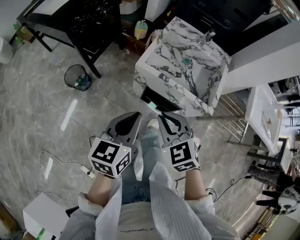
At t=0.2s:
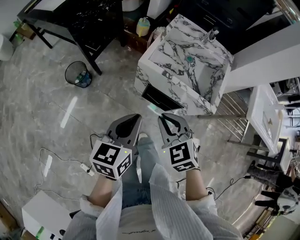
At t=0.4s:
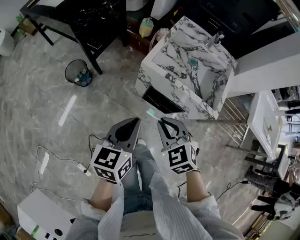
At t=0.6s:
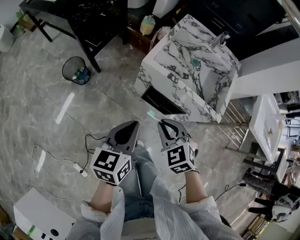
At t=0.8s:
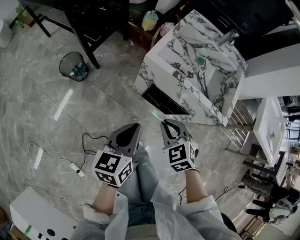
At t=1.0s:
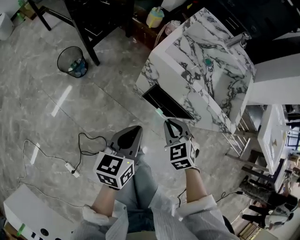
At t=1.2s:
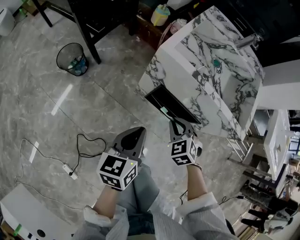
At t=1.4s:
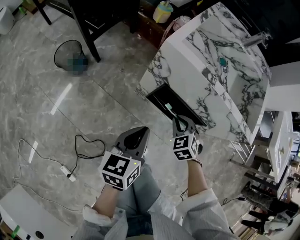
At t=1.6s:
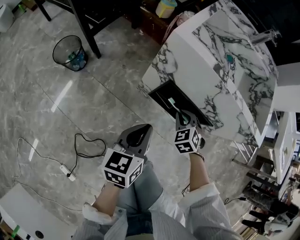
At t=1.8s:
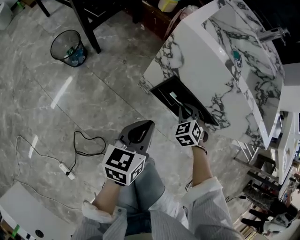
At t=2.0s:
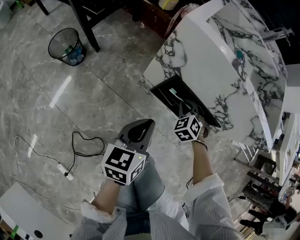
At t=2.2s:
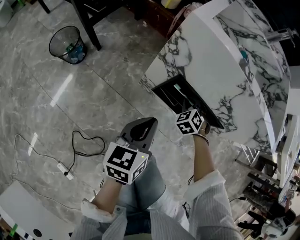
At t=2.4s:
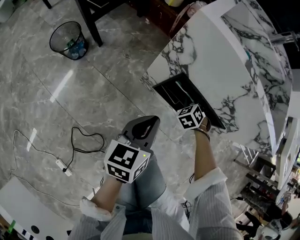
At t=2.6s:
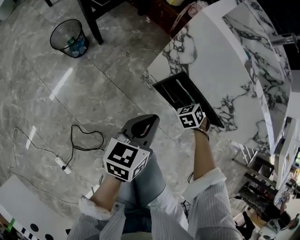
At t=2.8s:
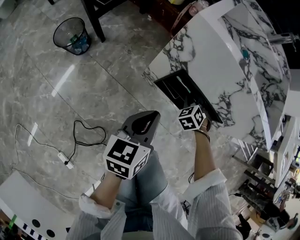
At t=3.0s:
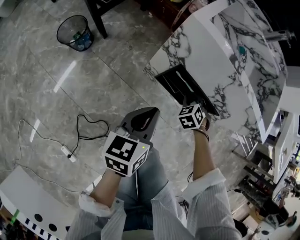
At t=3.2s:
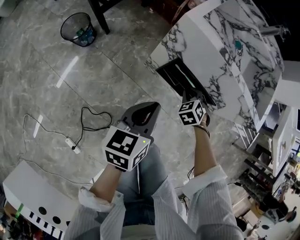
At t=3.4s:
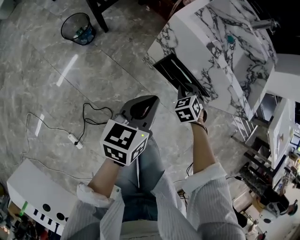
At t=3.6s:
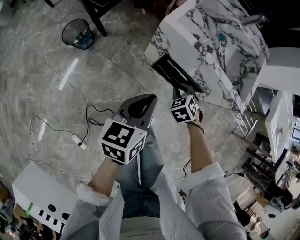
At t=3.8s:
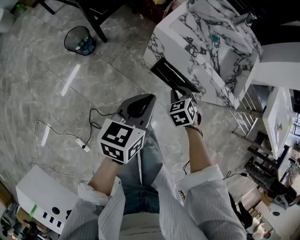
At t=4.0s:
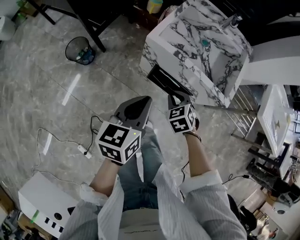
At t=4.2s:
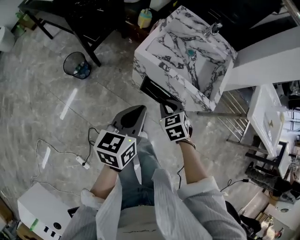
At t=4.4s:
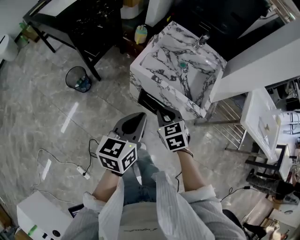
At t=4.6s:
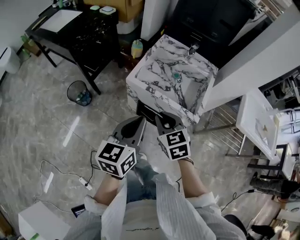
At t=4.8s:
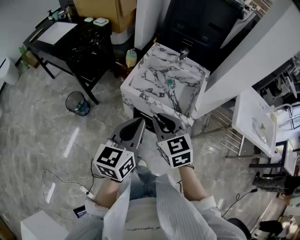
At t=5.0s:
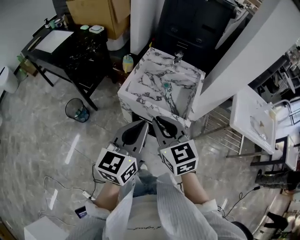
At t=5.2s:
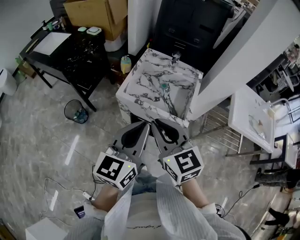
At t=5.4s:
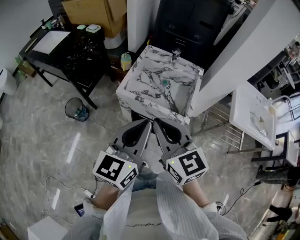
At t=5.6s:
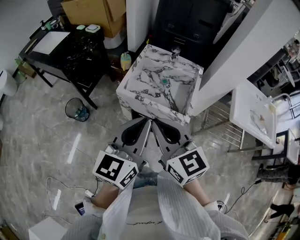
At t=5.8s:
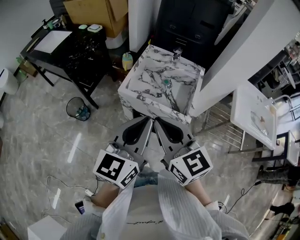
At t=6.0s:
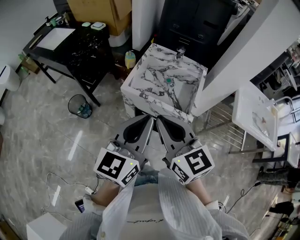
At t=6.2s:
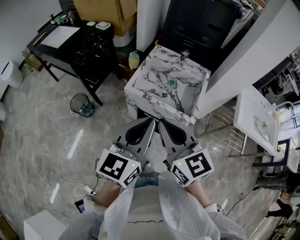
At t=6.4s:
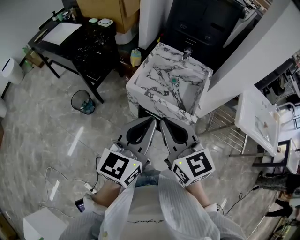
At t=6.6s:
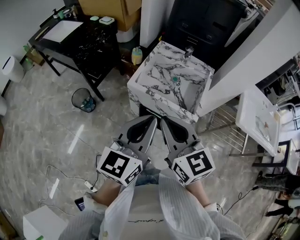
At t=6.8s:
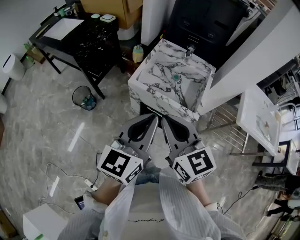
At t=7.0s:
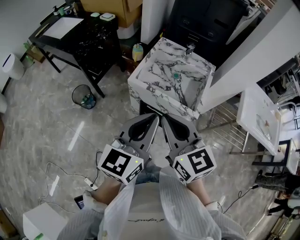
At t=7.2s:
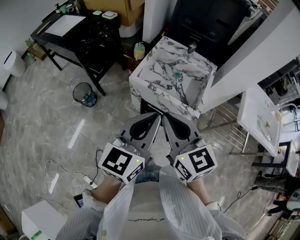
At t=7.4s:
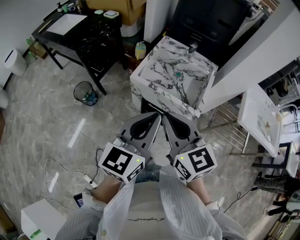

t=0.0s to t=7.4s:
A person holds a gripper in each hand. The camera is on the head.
t=0.0s to t=1.4s: Both grippers travel together downward, roughly 30 cm.
t=1.4s to t=3.0s: The right gripper moves downward, roughly 10 cm; the left gripper travels downward and back again, roughly 10 cm each way.
t=3.0s to t=4.4s: Both grippers move upward, roughly 30 cm. The right gripper turns by approximately 30 degrees.
t=4.4s to t=6.0s: The right gripper travels upward by about 25 cm, and tips its fingers upward by some 40 degrees. Meanwhile the left gripper travels upward by some 15 cm, and changes its angle by roughly 20 degrees.
t=6.0s to t=7.4s: The grippers move only a little.

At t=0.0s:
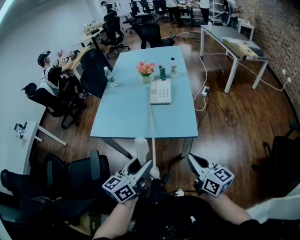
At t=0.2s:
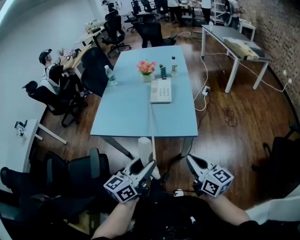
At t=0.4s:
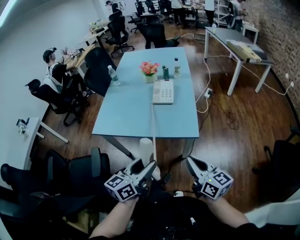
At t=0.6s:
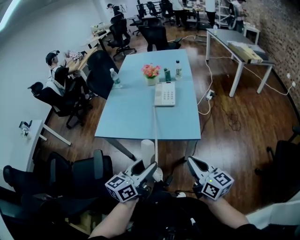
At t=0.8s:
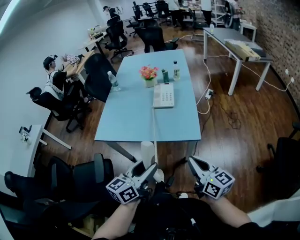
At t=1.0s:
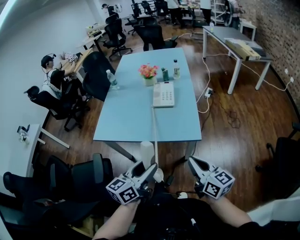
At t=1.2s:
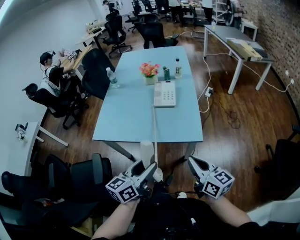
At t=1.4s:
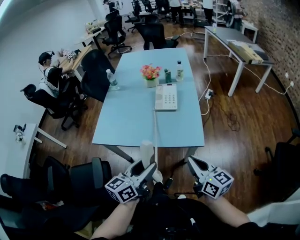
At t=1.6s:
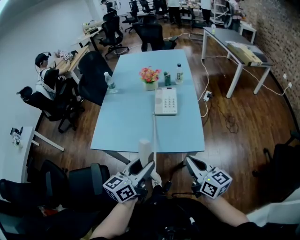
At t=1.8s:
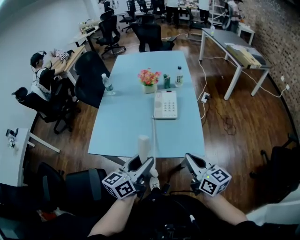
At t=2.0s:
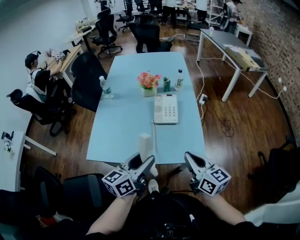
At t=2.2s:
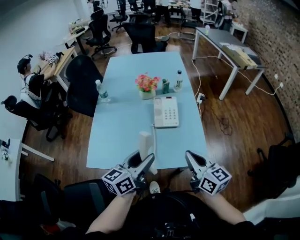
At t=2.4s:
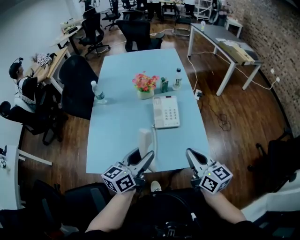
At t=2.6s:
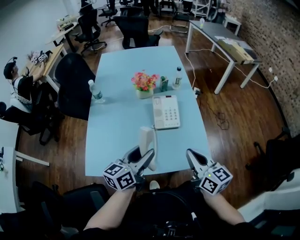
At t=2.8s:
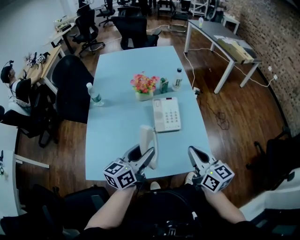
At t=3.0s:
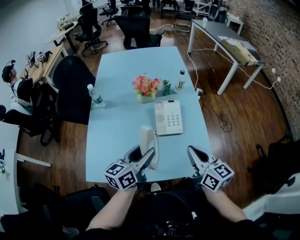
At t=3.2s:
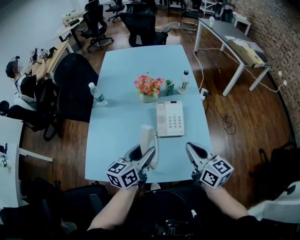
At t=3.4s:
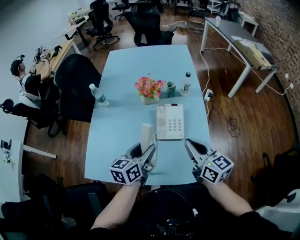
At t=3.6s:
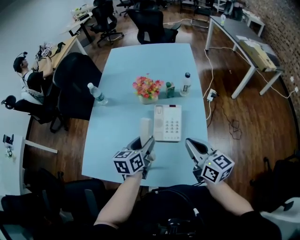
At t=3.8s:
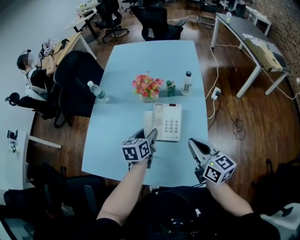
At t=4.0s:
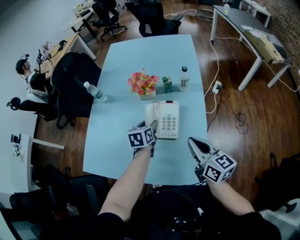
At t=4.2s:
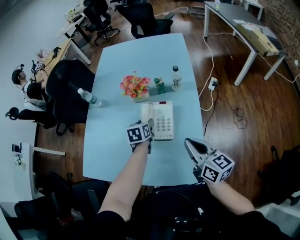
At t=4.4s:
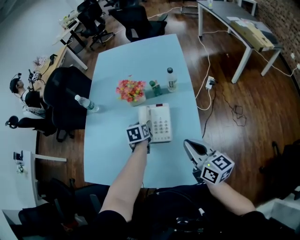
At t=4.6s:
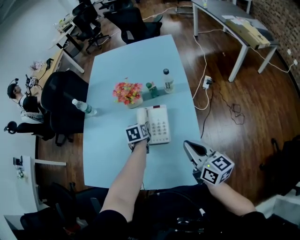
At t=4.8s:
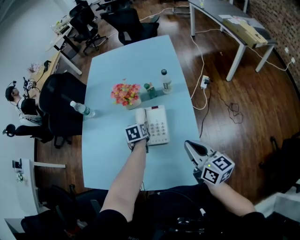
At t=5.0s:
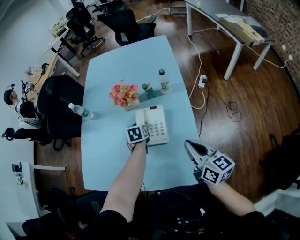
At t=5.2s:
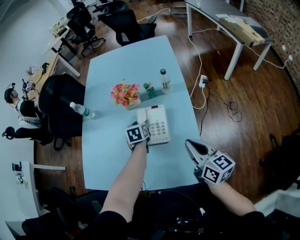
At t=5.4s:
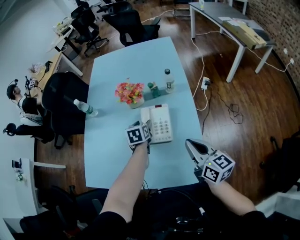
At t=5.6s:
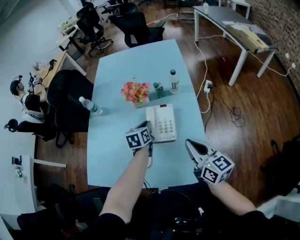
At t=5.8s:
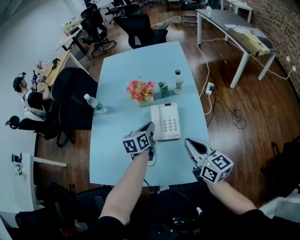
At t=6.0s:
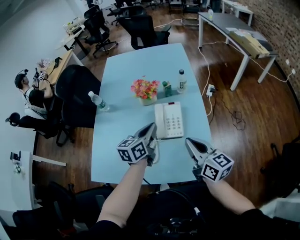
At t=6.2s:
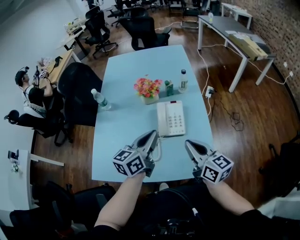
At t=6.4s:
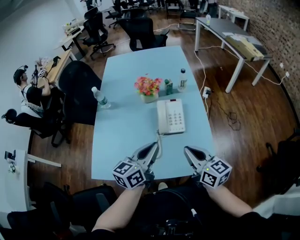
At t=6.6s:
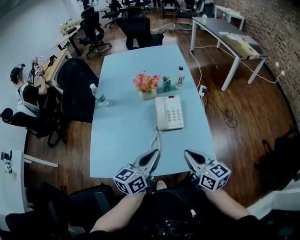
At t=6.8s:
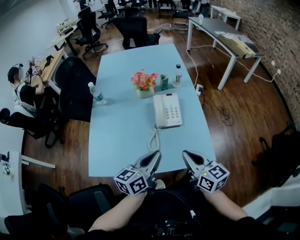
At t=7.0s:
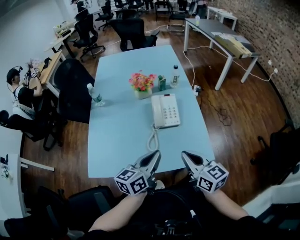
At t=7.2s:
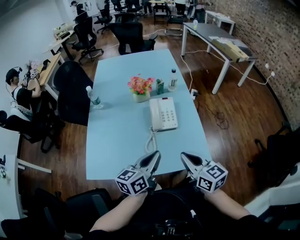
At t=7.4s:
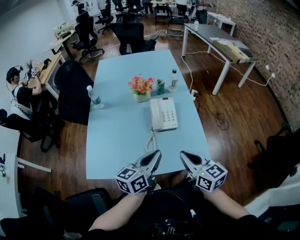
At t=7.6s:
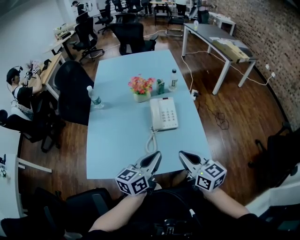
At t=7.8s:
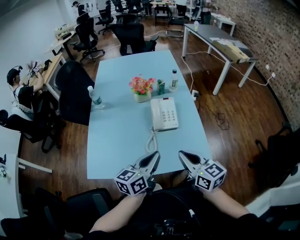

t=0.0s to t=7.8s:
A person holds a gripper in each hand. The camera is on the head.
t=0.0s to t=1.6s: The grippers both shift forward by about 10 cm.
t=1.6s to t=3.2s: The two grippers go approximately 25 cm forward.
t=3.2s to t=4.6s: The right gripper travels to the right by some 10 cm, while the left gripper moves forward, downward and to the right, some 30 cm, and tips its fingers downward by roughly 40 degrees.
t=4.6s to t=6.2s: The right gripper travels to the left by some 10 cm, while the left gripper heads upward and backward, covering about 25 cm, tips its fingers upward by about 40 degrees, and closes up.
t=6.2s to t=7.8s: Both grippers travel together backward, approximately 10 cm.

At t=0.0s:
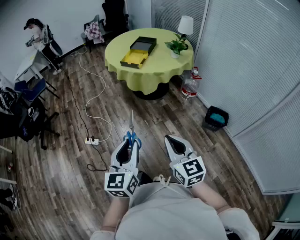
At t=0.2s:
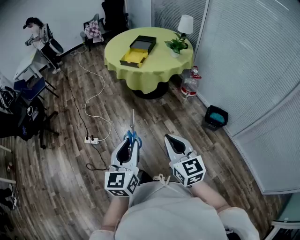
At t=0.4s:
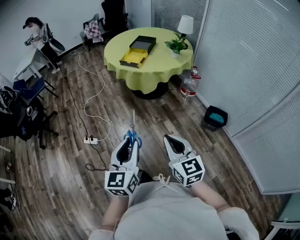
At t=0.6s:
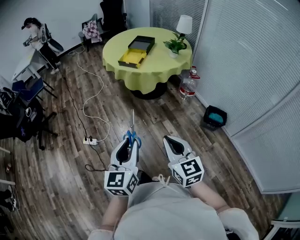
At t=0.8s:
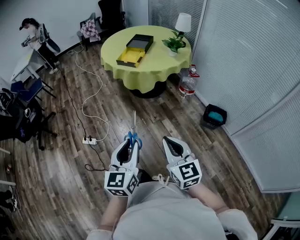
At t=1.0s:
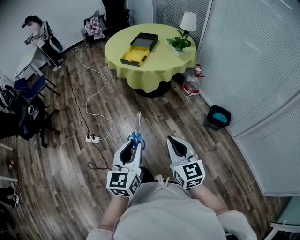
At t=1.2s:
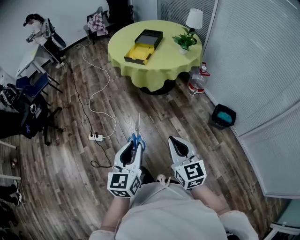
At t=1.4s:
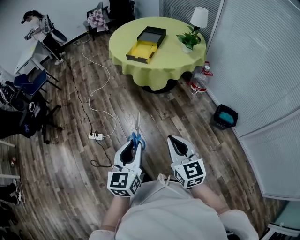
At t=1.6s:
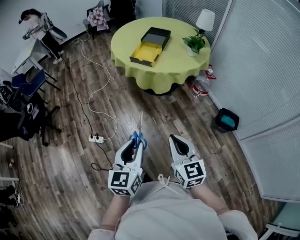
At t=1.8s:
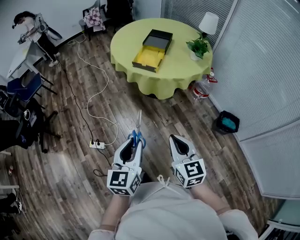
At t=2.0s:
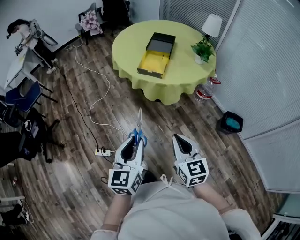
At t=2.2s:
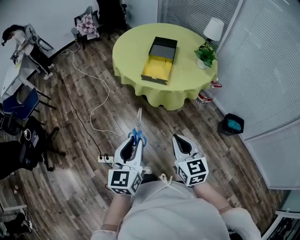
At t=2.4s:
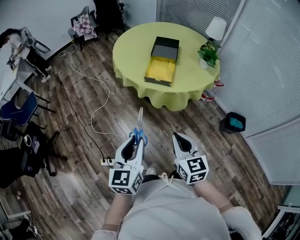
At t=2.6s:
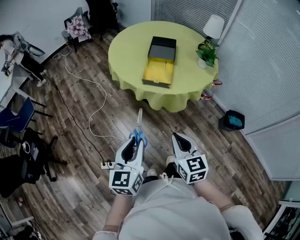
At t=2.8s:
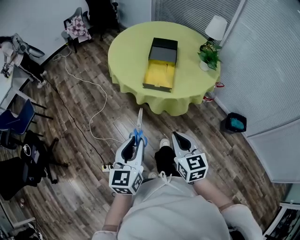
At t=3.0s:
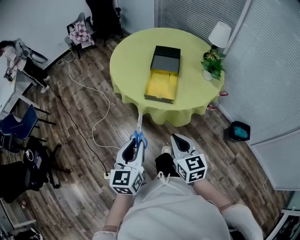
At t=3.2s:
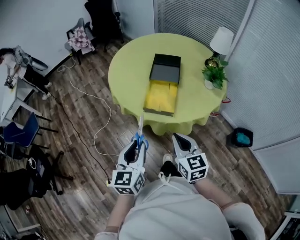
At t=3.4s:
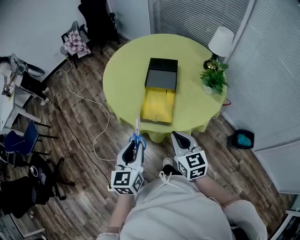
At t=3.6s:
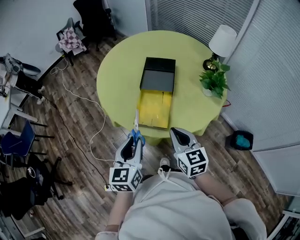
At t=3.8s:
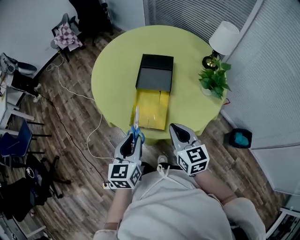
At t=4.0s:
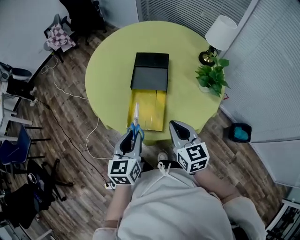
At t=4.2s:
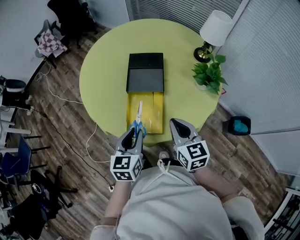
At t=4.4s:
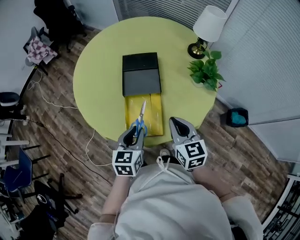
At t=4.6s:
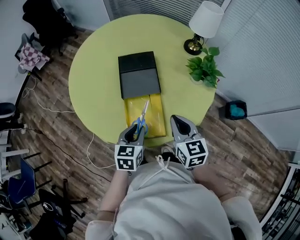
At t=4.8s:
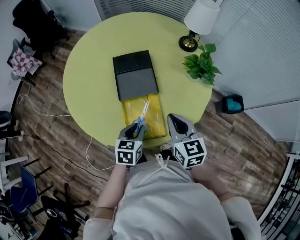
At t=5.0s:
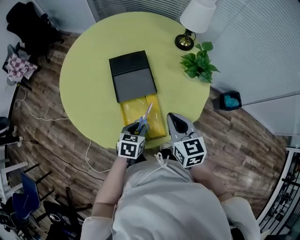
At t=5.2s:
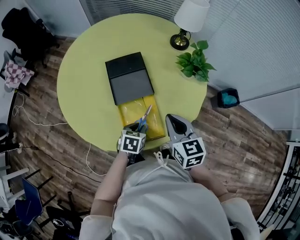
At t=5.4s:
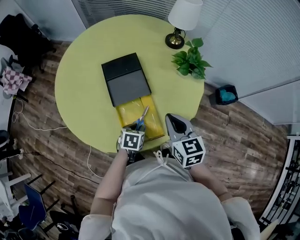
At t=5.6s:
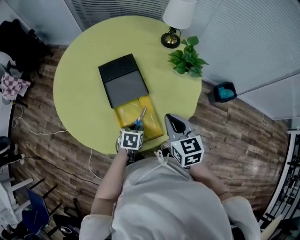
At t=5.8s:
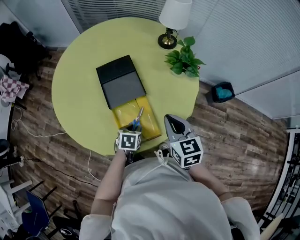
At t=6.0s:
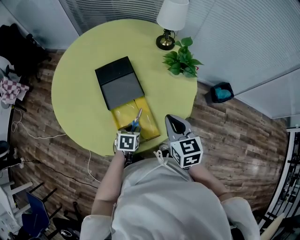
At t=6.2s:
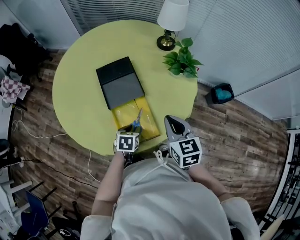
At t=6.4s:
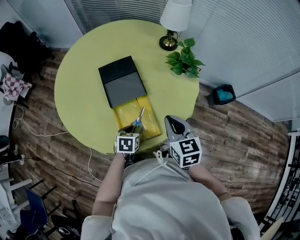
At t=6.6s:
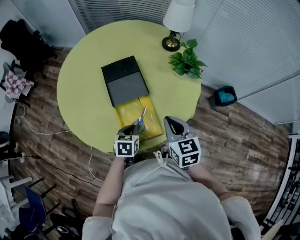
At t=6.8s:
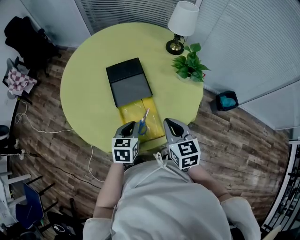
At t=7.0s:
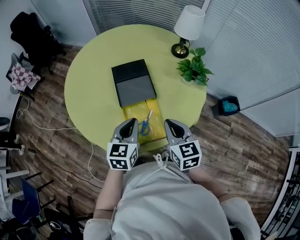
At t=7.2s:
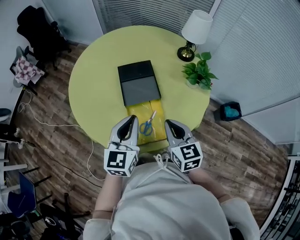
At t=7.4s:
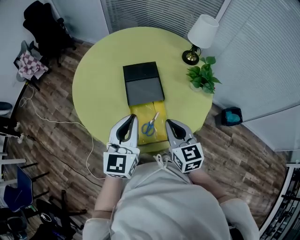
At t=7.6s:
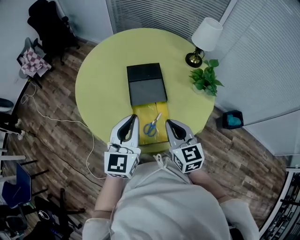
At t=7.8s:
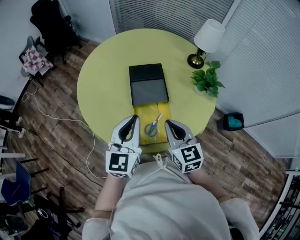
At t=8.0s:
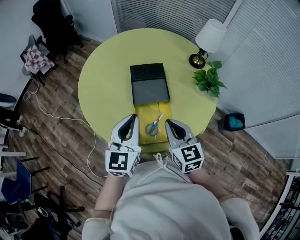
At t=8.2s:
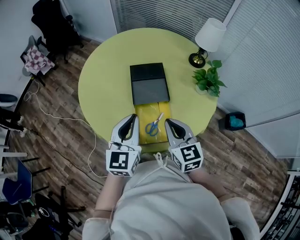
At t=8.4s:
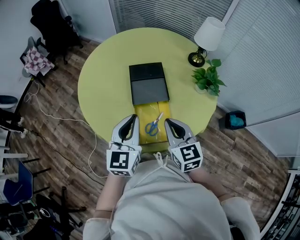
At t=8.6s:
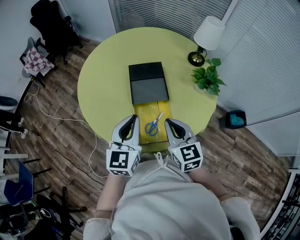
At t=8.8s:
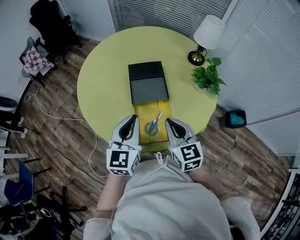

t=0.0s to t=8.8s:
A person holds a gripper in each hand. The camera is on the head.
t=0.0s to t=1.4s: Both grippers travel together forward, roughly 10 cm.
t=1.4s to t=3.0s: The two grippers travel together, forward and to the left, approximately 50 cm.
t=3.0s to t=4.4s: Both grippers travel together forward, some 35 cm. The left gripper swivels roughly 30 degrees.
t=4.4s to t=5.8s: The left gripper is displaced downward by about 15 cm, and rotates roughly 40 degrees.
t=5.8s to t=7.4s: The right gripper goes some 5 cm to the left, while the left gripper goes some 30 cm upward, and tilts its fingers approximately 60 degrees upward.
t=7.4s to t=8.8s: There are only small adjustments of the grippers.
